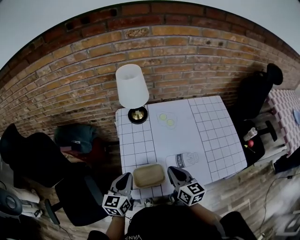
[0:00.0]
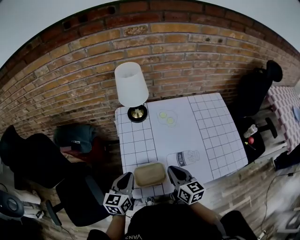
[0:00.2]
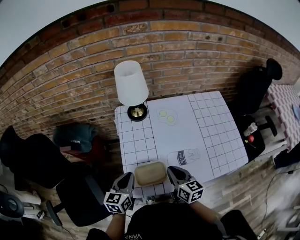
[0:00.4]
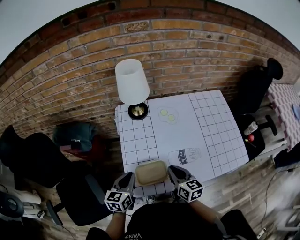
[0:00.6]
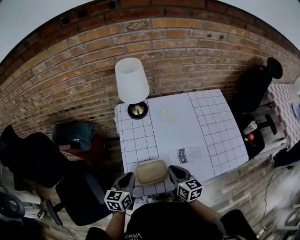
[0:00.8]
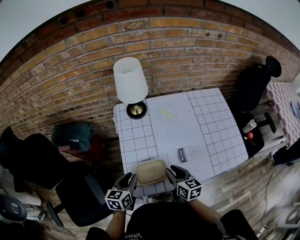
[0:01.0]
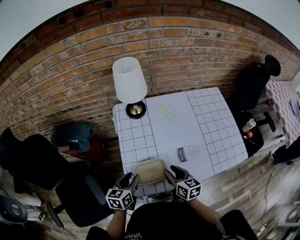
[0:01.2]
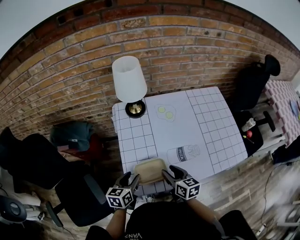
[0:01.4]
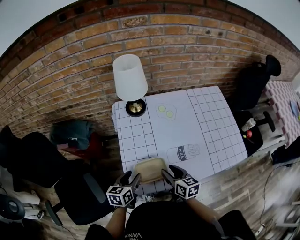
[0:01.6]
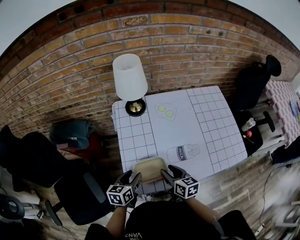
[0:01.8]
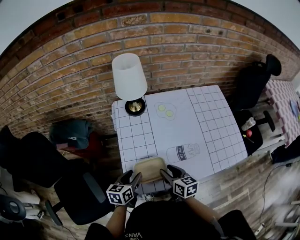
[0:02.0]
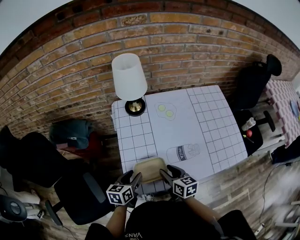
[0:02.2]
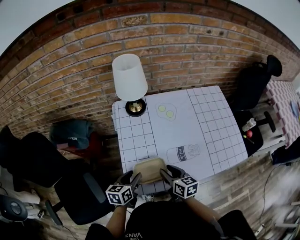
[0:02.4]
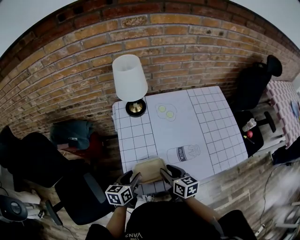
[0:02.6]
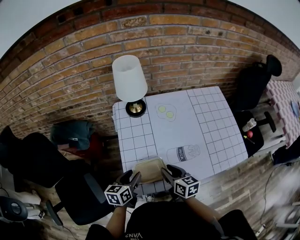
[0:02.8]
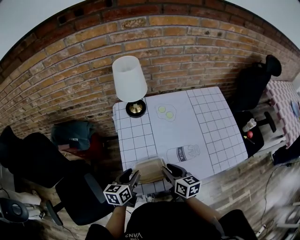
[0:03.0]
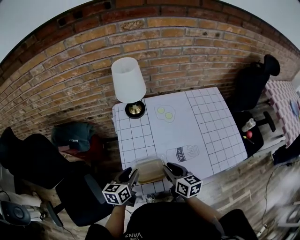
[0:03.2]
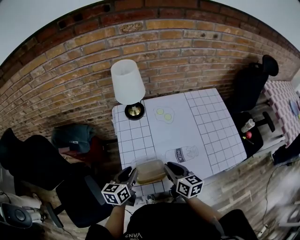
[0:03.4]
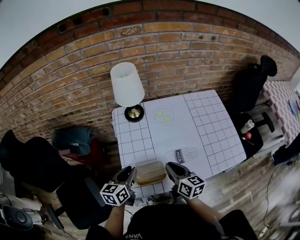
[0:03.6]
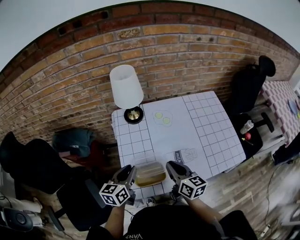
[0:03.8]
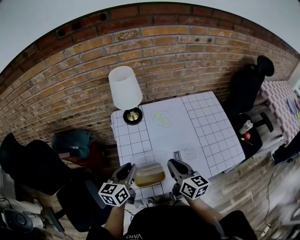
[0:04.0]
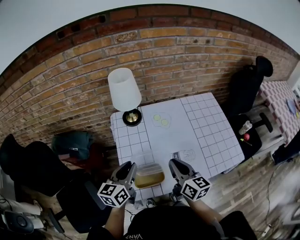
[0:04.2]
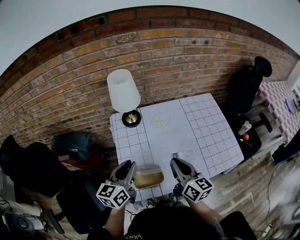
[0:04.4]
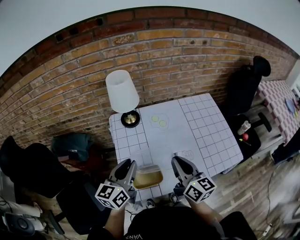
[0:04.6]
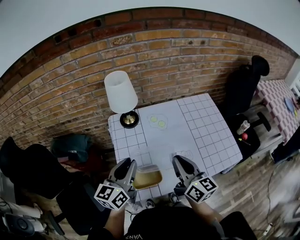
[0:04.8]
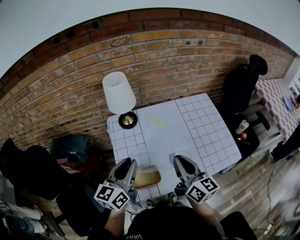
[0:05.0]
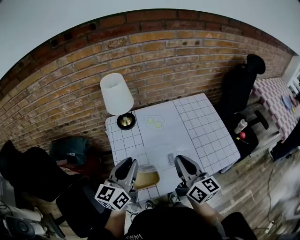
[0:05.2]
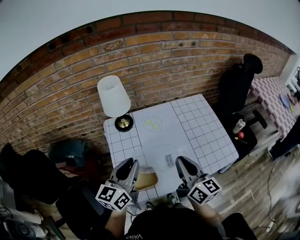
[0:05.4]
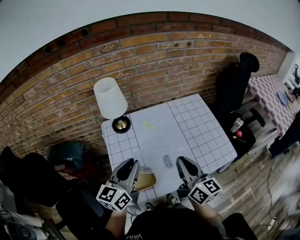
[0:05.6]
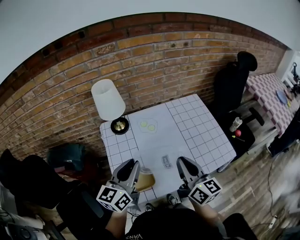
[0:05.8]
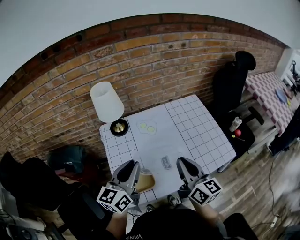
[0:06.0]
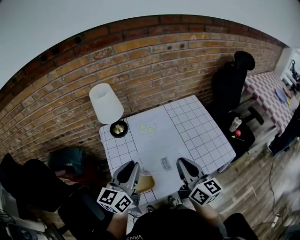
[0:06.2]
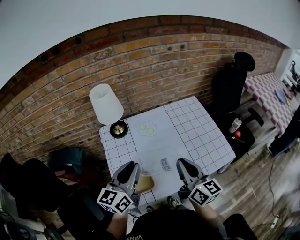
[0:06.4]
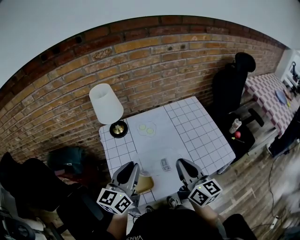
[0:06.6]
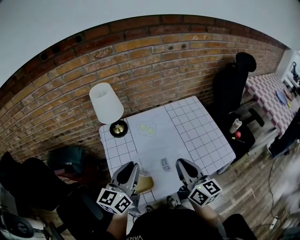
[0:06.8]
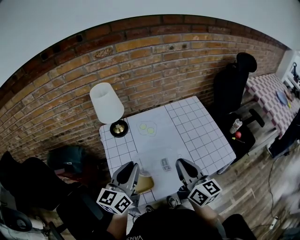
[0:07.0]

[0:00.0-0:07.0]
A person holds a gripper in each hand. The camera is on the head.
0:00.0 to 0:01.4: Both grippers travel together downward, roughly 10 cm. The left gripper opens its fingers, while the right gripper opens.
0:01.4 to 0:02.8: The grippers move only a little.
0:02.8 to 0:04.2: The grippers both shift upward by about 15 cm. The left gripper changes its angle by about 20 degrees, and closes up. The right gripper rotates some 20 degrees, and closes its fingers.
0:04.2 to 0:05.6: Both grippers travel together upward and to the right, about 10 cm.
0:05.6 to 0:07.0: The grippers make only small movements.

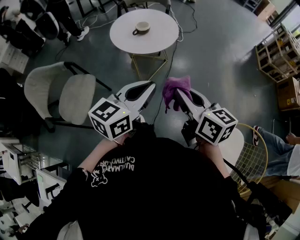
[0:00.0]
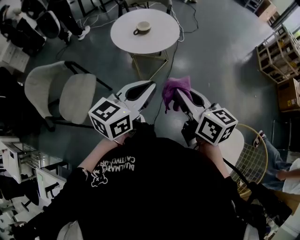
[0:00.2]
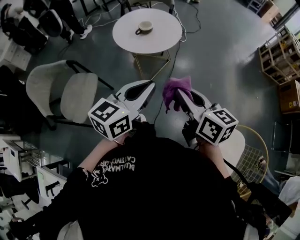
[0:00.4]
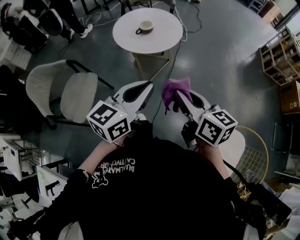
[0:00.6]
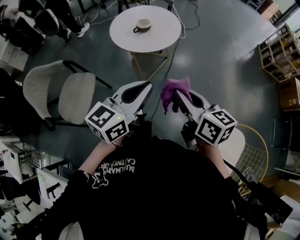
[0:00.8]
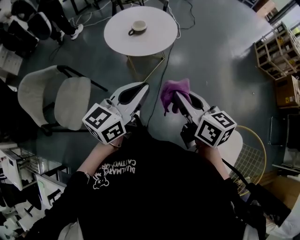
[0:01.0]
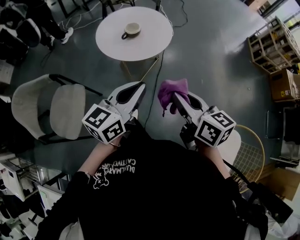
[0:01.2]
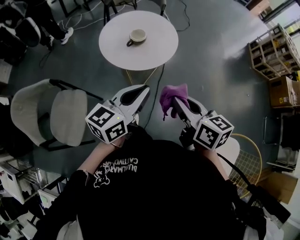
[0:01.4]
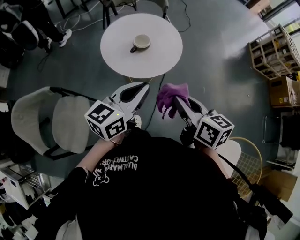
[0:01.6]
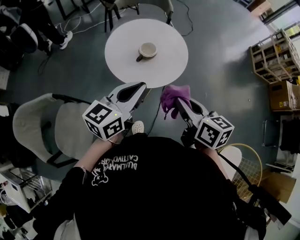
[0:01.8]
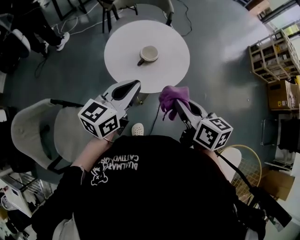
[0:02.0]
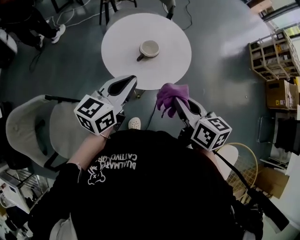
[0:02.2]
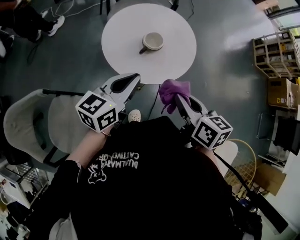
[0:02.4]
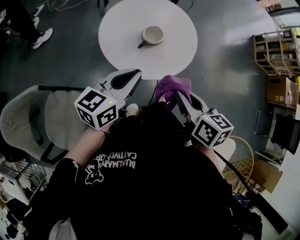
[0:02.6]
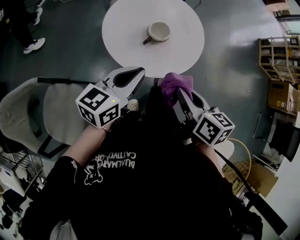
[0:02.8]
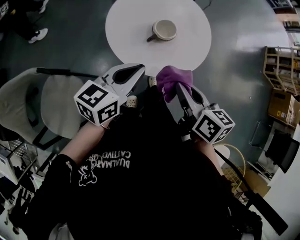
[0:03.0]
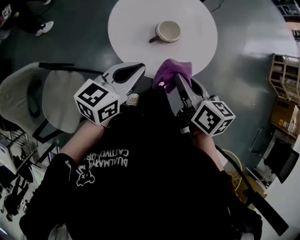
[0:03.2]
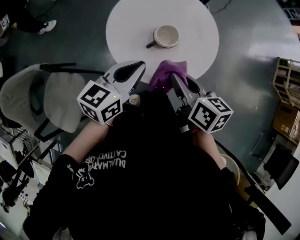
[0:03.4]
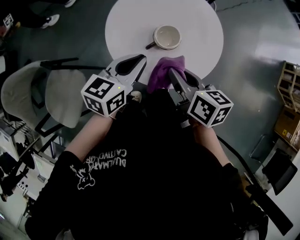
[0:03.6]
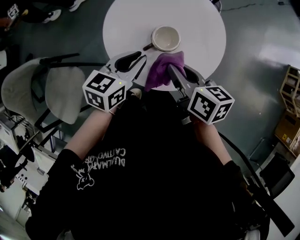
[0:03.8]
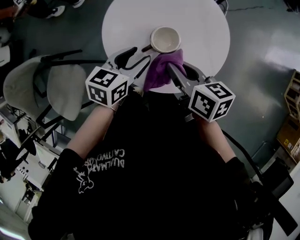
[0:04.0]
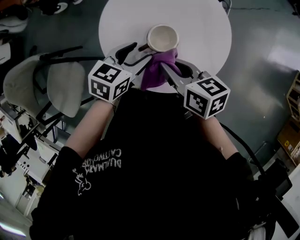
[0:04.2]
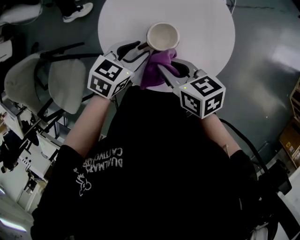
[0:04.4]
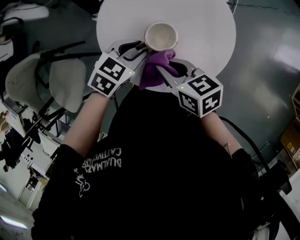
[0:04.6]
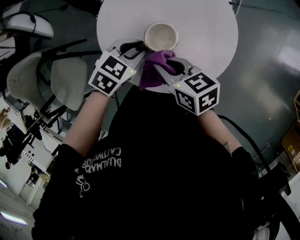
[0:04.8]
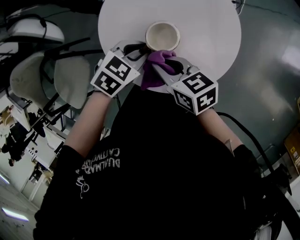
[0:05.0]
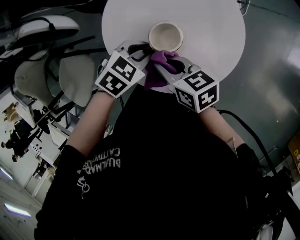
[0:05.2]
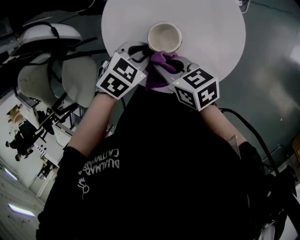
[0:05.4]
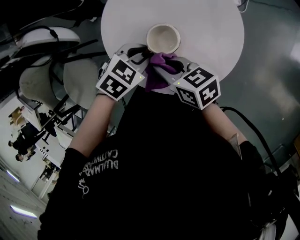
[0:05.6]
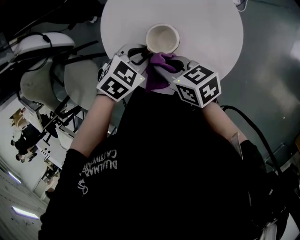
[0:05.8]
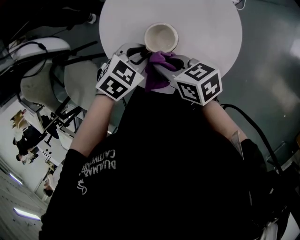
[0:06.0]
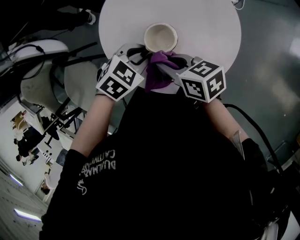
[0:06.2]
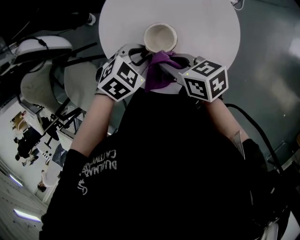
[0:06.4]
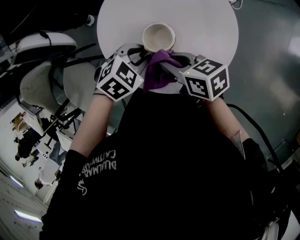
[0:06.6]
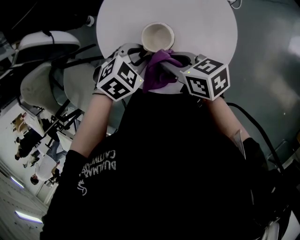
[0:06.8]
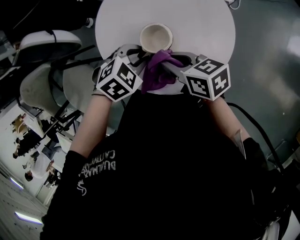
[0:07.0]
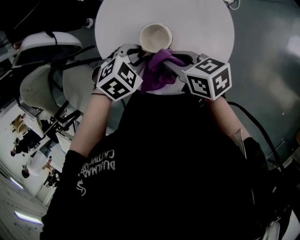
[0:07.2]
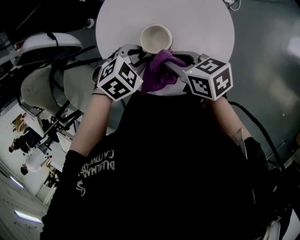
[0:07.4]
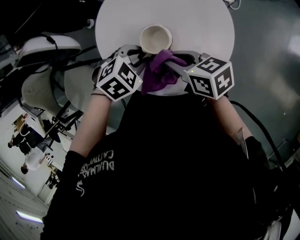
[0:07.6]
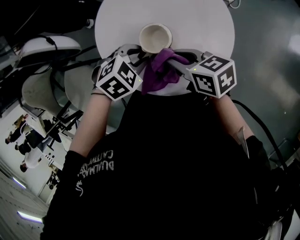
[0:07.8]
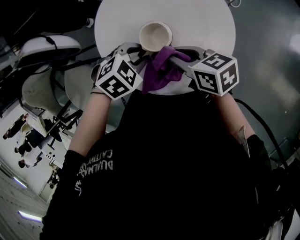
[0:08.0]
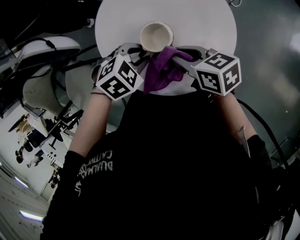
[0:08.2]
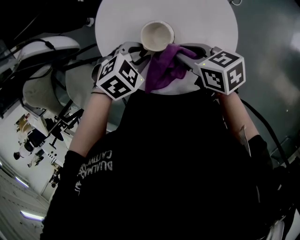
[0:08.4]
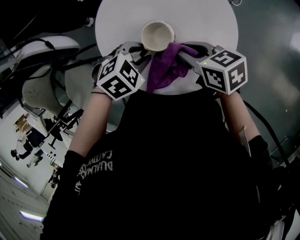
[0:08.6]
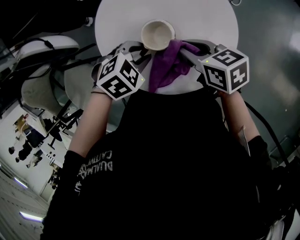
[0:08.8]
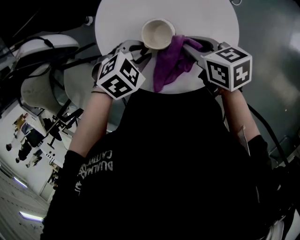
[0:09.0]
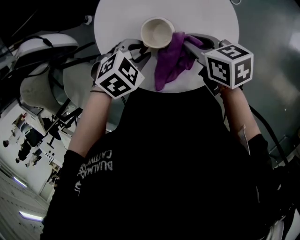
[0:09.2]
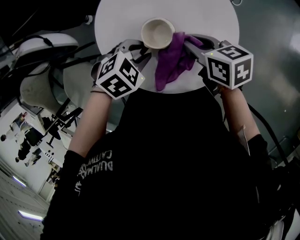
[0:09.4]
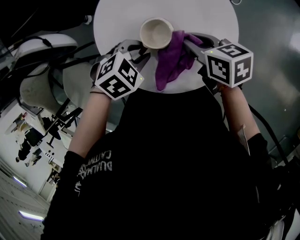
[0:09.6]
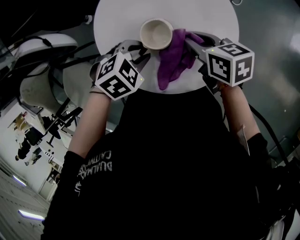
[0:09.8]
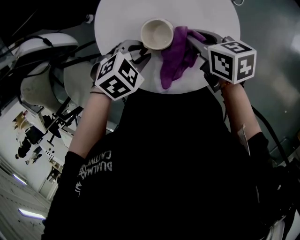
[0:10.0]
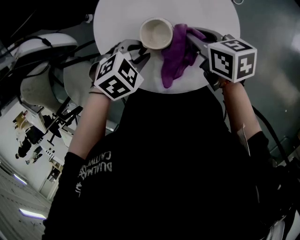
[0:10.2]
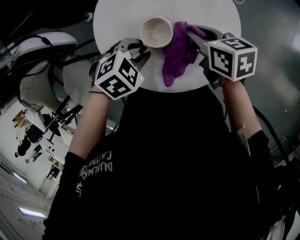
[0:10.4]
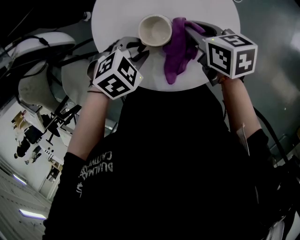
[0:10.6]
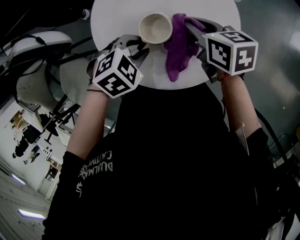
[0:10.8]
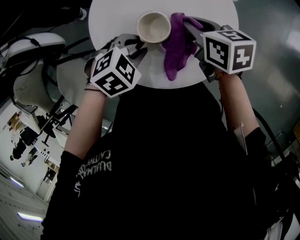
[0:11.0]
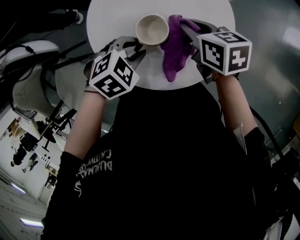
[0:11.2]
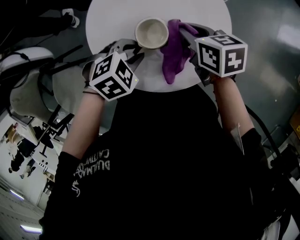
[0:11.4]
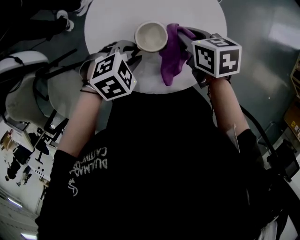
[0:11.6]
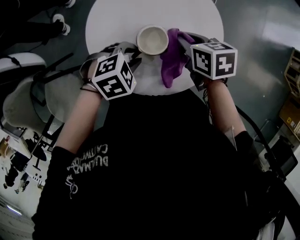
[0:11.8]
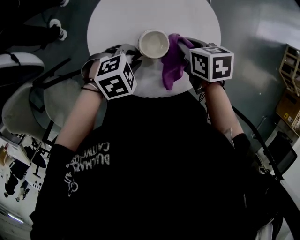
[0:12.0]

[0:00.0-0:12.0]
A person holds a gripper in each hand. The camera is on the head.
0:00.0 to 0:01.6: The right gripper moves forward, roughly 20 cm. Meanwhile the left gripper shifts roughly 25 cm forward and to the left.
0:01.6 to 0:03.0: The two grippers go some 20 cm forward, downward and to the left.
0:03.0 to 0:04.4: The left gripper shifts roughly 20 cm downward and forward, swivels roughly 30 degrees, and opens up; the right gripper is displaced forward and downward by about 15 cm, and rotates about 40 degrees.
0:04.4 to 0:06.0: The left gripper changes its angle by roughly 30 degrees, and closes its fingers.
0:06.0 to 0:07.6: The right gripper shifts by about 5 cm.
0:07.6 to 0:09.0: The right gripper ends up approximately 5 cm from where it was.
0:09.0 to 0:10.4: The grippers move only a little.
0:10.4 to 0:12.0: The right gripper swivels approximately 20 degrees.

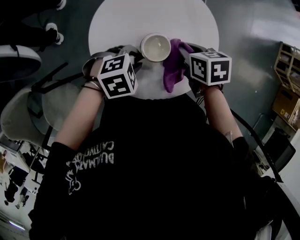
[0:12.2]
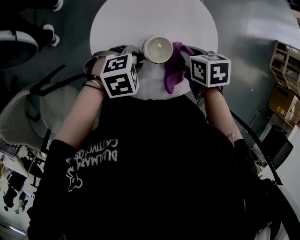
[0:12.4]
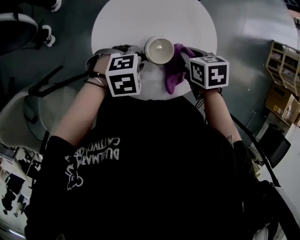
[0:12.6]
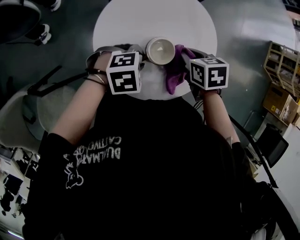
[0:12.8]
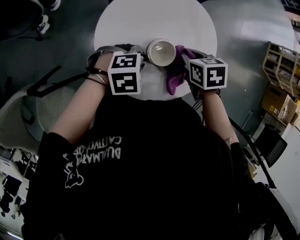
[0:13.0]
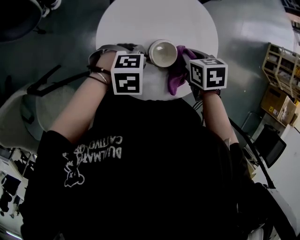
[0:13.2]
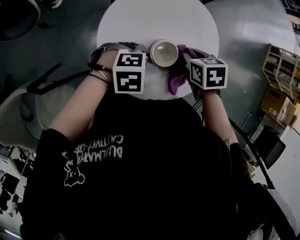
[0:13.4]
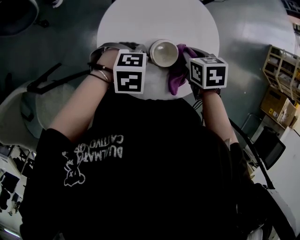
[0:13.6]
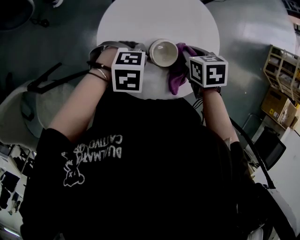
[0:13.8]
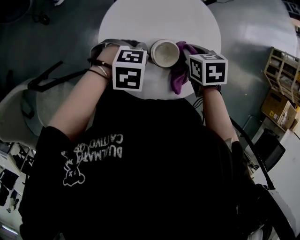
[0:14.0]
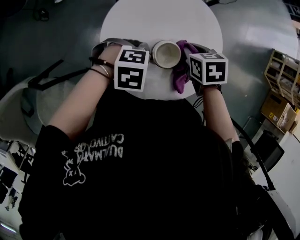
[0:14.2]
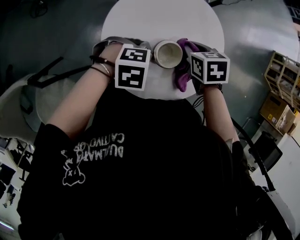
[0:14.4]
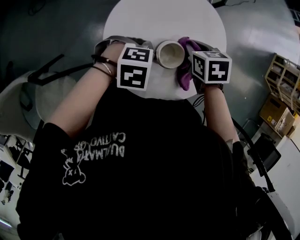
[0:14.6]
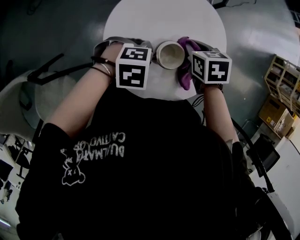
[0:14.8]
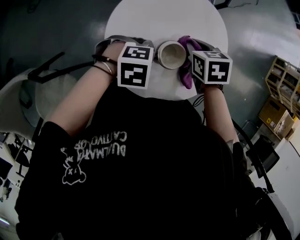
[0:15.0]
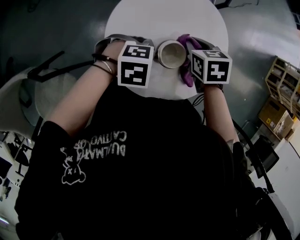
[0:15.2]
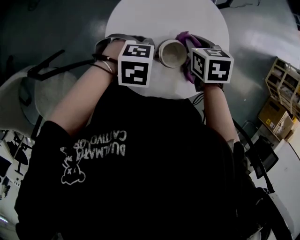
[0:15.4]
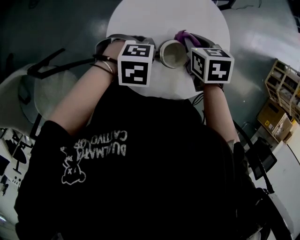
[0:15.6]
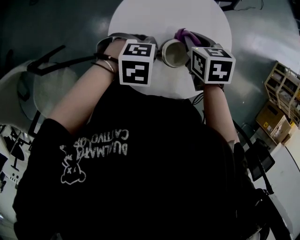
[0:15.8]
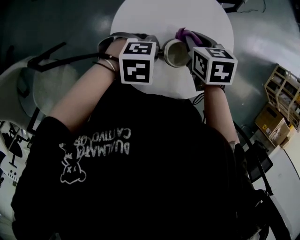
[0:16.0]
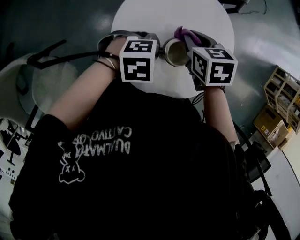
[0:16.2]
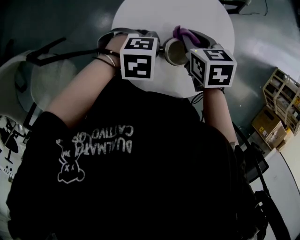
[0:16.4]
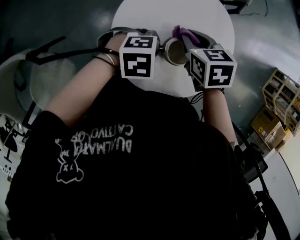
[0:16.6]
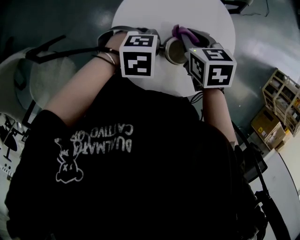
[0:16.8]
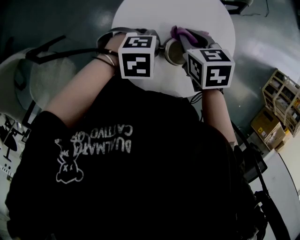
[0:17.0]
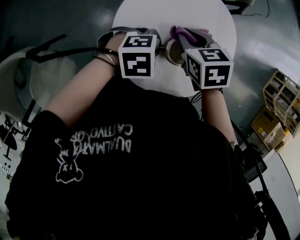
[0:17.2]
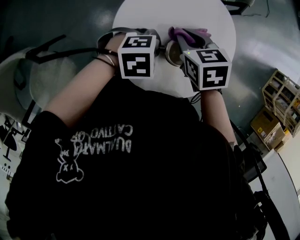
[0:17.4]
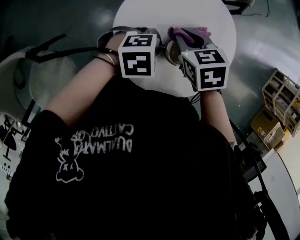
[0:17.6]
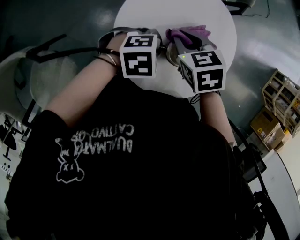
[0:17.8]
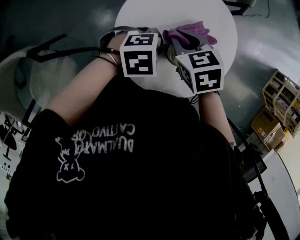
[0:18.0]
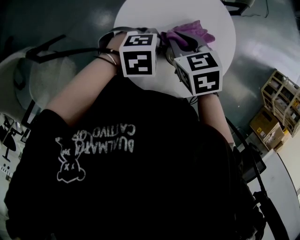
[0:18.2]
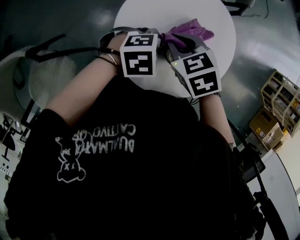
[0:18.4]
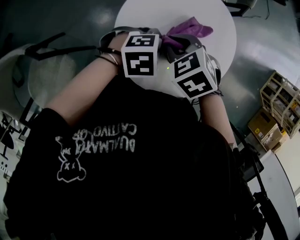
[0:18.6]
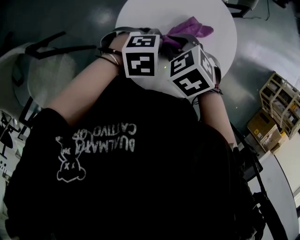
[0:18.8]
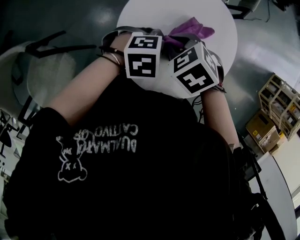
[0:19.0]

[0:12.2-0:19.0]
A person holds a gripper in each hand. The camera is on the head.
0:12.2 to 0:15.0: The grippers move only a little.
0:15.0 to 0:16.2: The right gripper ends up roughly 5 cm from where it was.
0:16.2 to 0:17.6: The grippers make only small movements.
0:17.6 to 0:19.0: The right gripper moves some 5 cm, and swivels roughly 30 degrees.
